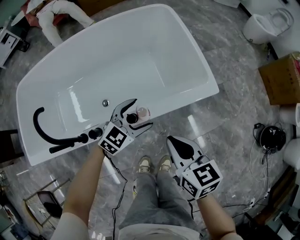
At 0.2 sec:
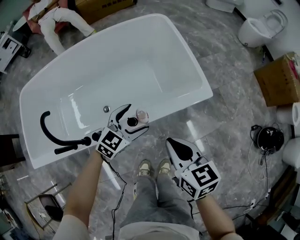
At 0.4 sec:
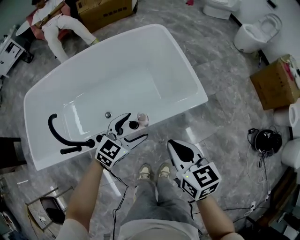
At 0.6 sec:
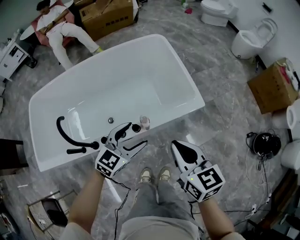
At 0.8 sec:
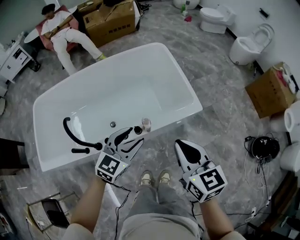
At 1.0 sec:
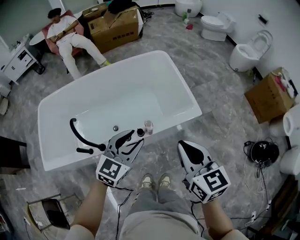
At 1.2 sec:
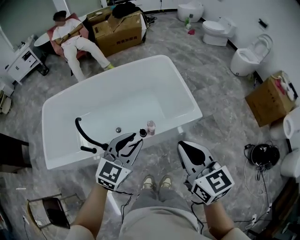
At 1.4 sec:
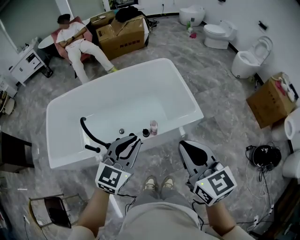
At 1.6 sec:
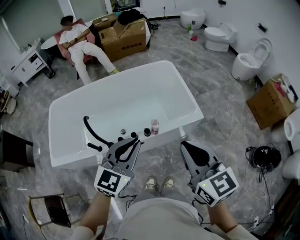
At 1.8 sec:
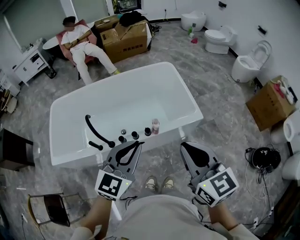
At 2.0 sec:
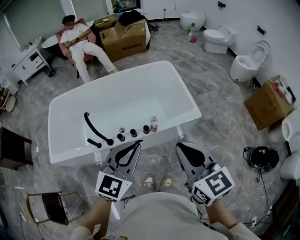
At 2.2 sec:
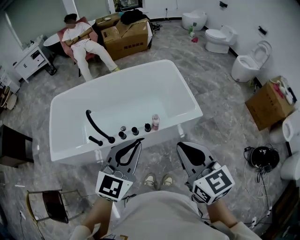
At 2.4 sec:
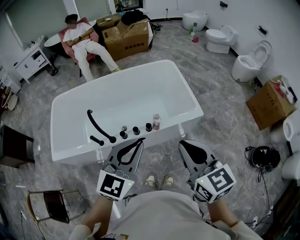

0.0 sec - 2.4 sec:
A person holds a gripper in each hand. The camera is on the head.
0.0 sec - 1.2 sec: The left gripper moves upward and backward, approximately 35 cm, swivels approximately 20 degrees, and closes; the right gripper heads upward, covering roughly 30 cm, and changes its angle by some 20 degrees.
1.2 sec - 2.4 sec: The left gripper travels backward and upward by about 15 cm; the right gripper shifts some 10 cm backward and upward.

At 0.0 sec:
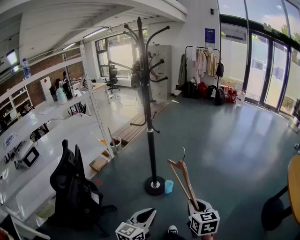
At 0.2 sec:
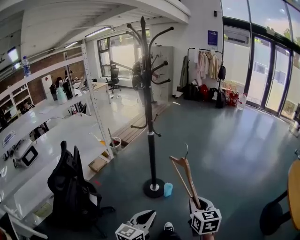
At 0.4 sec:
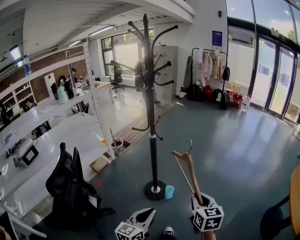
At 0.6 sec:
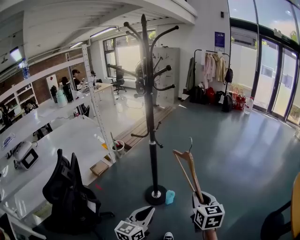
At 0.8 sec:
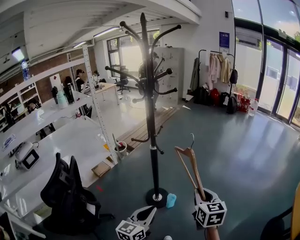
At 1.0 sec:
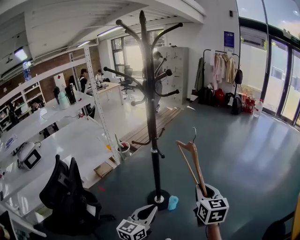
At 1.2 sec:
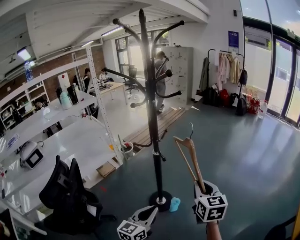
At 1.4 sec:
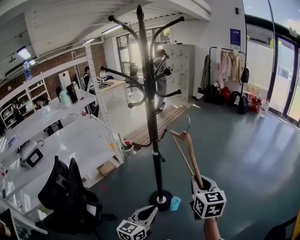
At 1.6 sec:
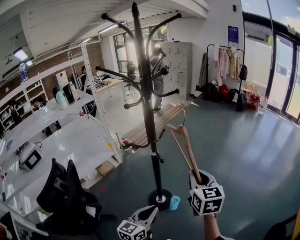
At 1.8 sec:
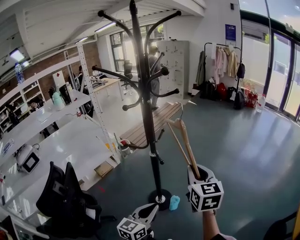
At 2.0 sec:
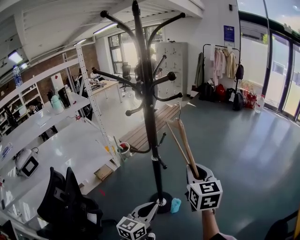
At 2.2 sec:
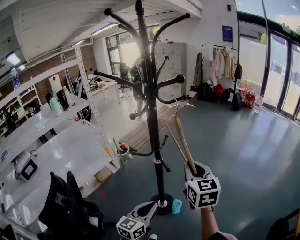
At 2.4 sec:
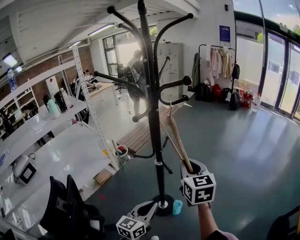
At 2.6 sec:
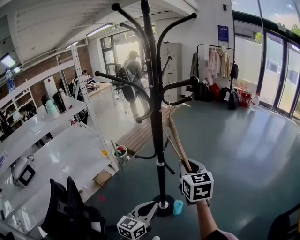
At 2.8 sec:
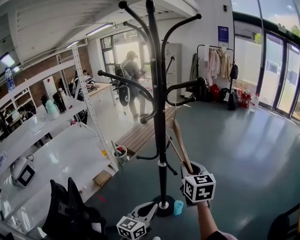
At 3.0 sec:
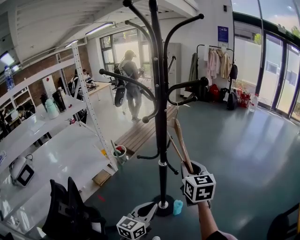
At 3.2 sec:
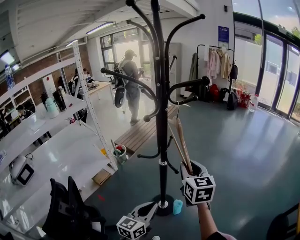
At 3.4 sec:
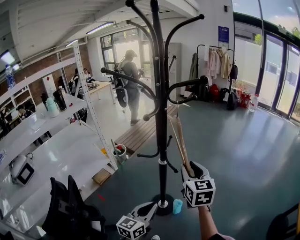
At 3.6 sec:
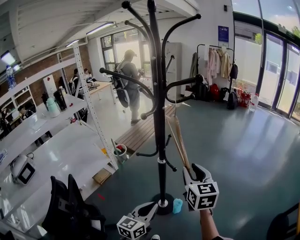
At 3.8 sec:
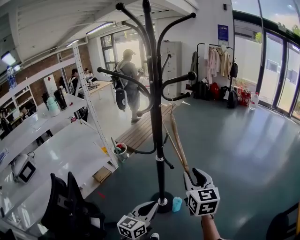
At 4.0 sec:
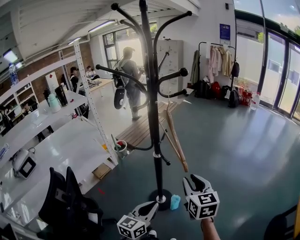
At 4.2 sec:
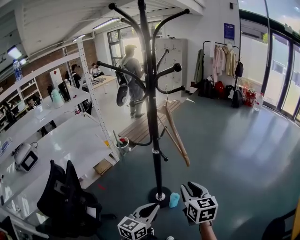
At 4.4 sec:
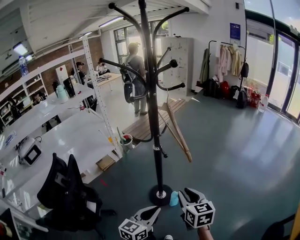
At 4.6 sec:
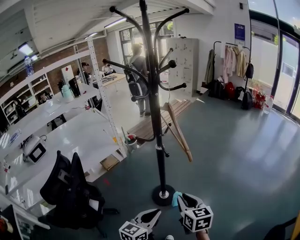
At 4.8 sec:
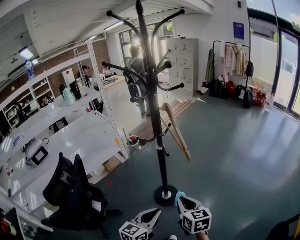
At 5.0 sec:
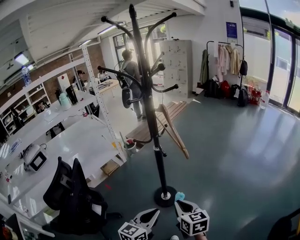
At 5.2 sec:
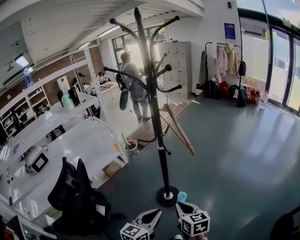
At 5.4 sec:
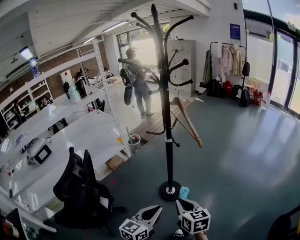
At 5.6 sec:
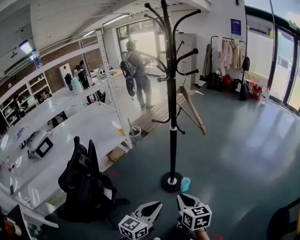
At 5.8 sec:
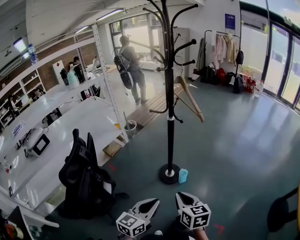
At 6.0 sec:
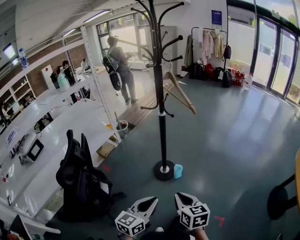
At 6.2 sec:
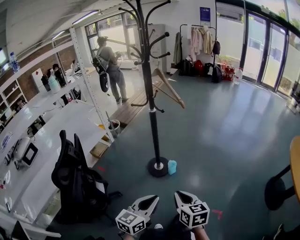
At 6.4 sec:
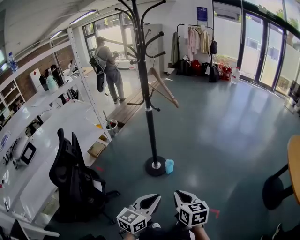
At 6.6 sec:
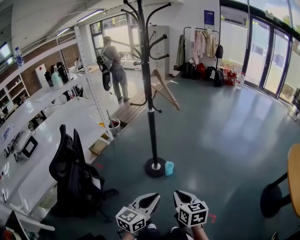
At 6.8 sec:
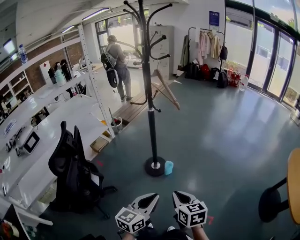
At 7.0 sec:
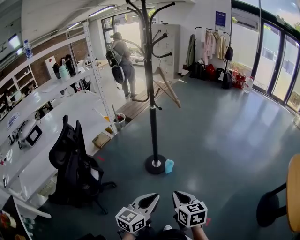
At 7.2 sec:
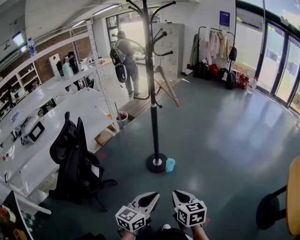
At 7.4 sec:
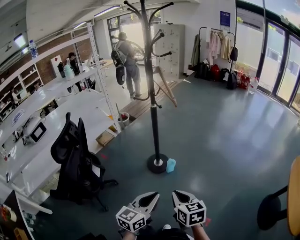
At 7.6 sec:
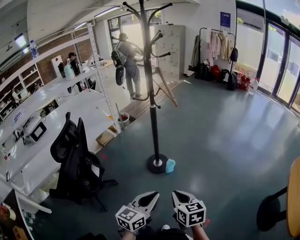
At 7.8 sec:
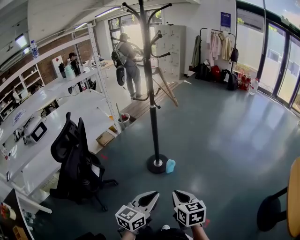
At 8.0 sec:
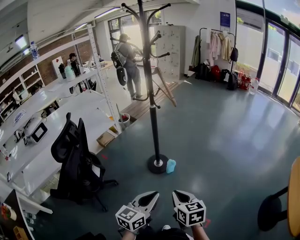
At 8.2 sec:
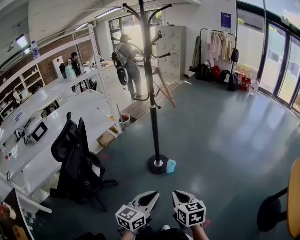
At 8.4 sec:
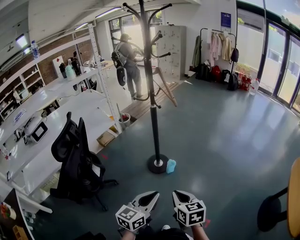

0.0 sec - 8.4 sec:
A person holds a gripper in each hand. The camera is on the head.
0.0 sec - 1.4 sec: The two grippers go approximately 30 cm forward.
1.4 sec - 2.8 sec: The grippers both shift to the left and forward by roughly 15 cm.
2.8 sec - 4.2 sec: The right gripper is displaced backward, downward and to the right by approximately 15 cm. The left gripper travels to the right and backward by some 10 cm.
4.2 sec - 5.6 sec: The left gripper heads backward, covering roughly 15 cm; the right gripper goes about 25 cm backward and to the left, and closes up.
5.6 sec - 7.0 sec: The two grippers go some 15 cm backward and to the right.
7.0 sec - 8.4 sec: The grippers stay close to where they were, moving slightly.

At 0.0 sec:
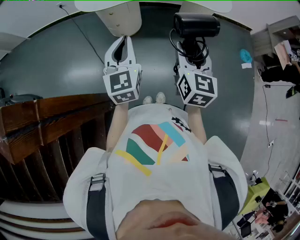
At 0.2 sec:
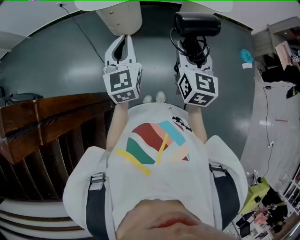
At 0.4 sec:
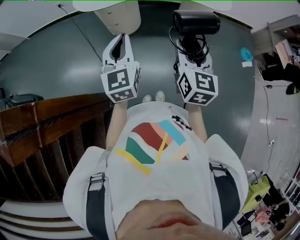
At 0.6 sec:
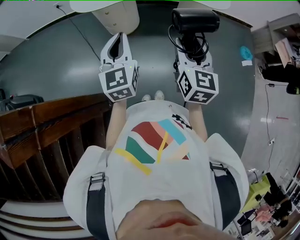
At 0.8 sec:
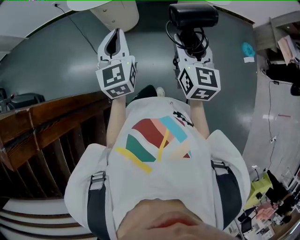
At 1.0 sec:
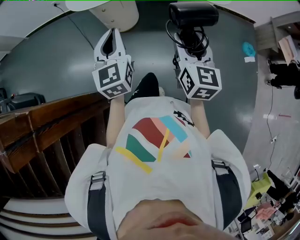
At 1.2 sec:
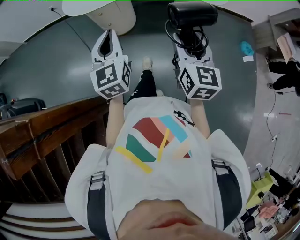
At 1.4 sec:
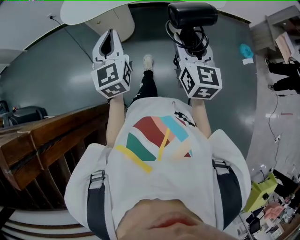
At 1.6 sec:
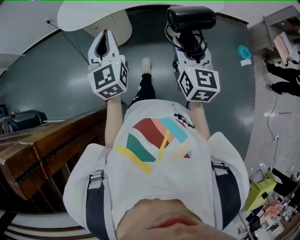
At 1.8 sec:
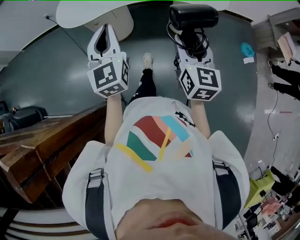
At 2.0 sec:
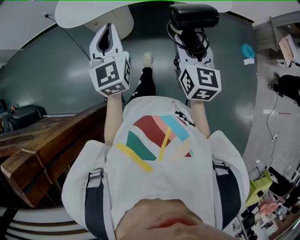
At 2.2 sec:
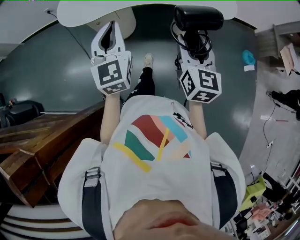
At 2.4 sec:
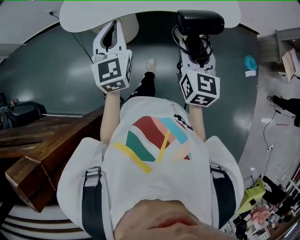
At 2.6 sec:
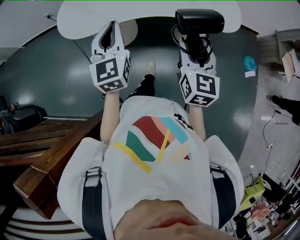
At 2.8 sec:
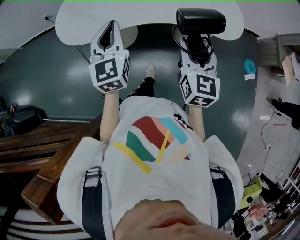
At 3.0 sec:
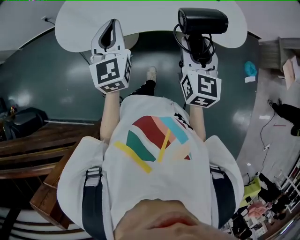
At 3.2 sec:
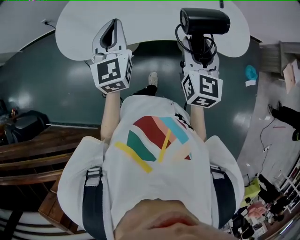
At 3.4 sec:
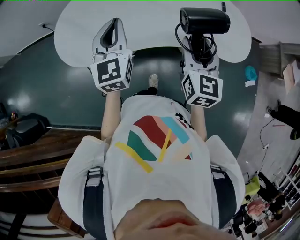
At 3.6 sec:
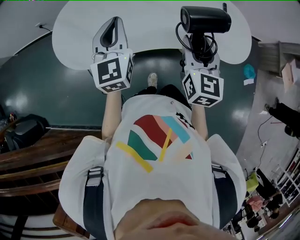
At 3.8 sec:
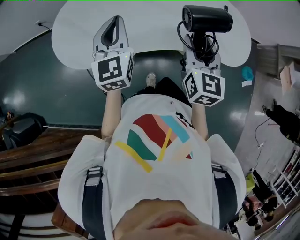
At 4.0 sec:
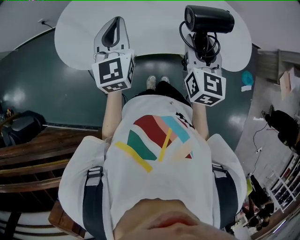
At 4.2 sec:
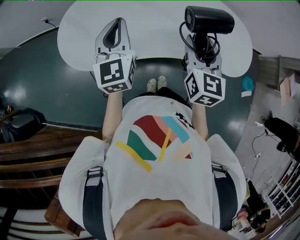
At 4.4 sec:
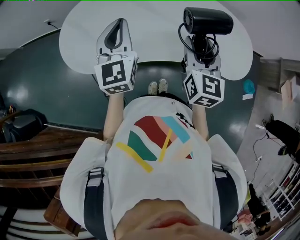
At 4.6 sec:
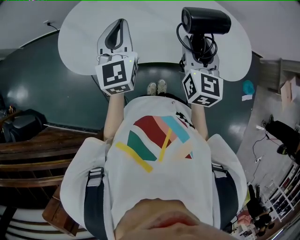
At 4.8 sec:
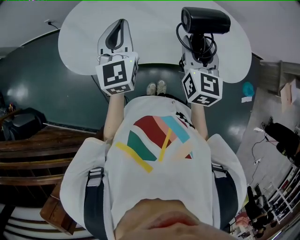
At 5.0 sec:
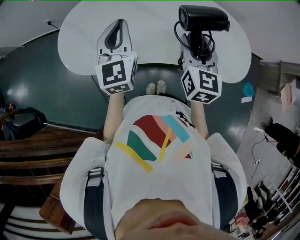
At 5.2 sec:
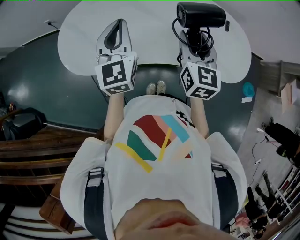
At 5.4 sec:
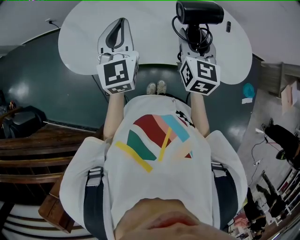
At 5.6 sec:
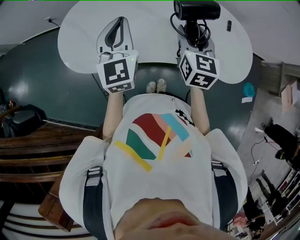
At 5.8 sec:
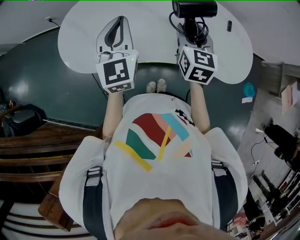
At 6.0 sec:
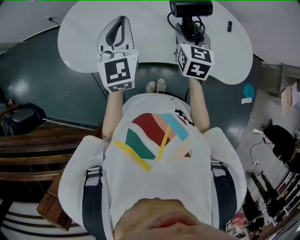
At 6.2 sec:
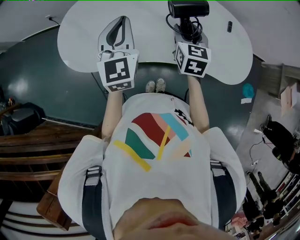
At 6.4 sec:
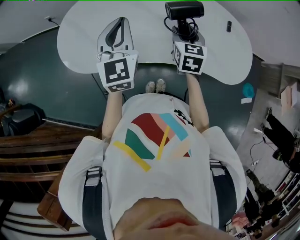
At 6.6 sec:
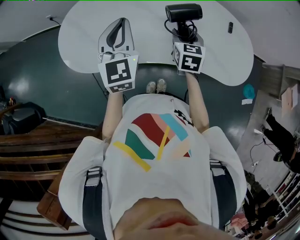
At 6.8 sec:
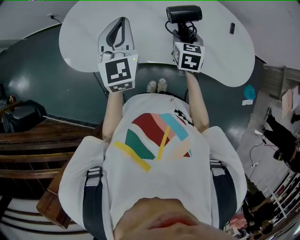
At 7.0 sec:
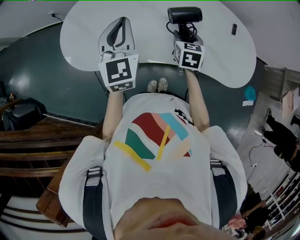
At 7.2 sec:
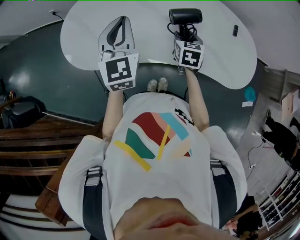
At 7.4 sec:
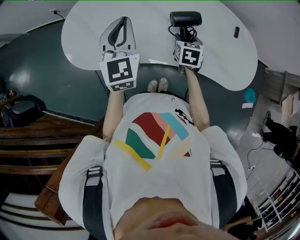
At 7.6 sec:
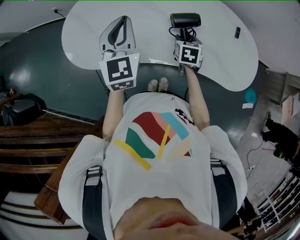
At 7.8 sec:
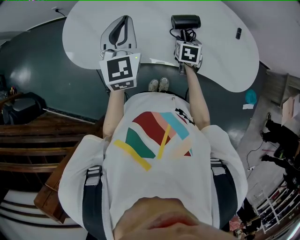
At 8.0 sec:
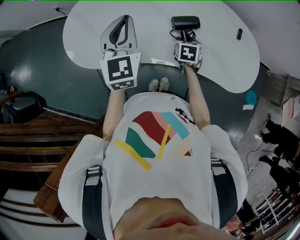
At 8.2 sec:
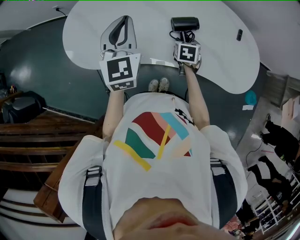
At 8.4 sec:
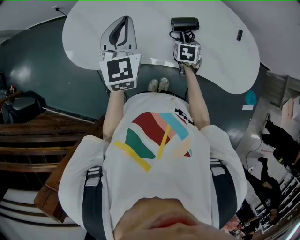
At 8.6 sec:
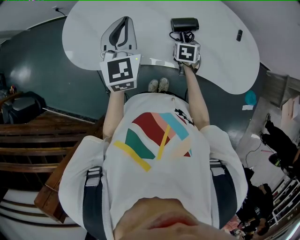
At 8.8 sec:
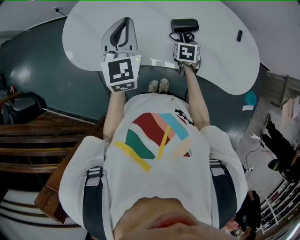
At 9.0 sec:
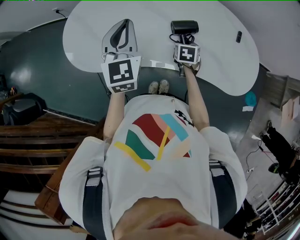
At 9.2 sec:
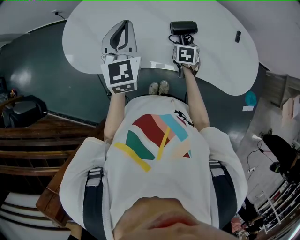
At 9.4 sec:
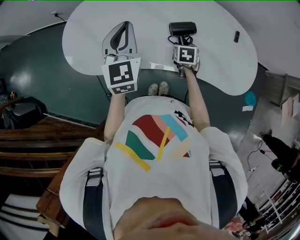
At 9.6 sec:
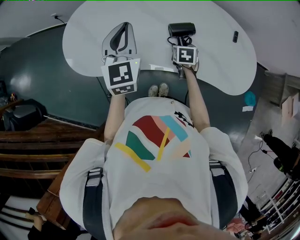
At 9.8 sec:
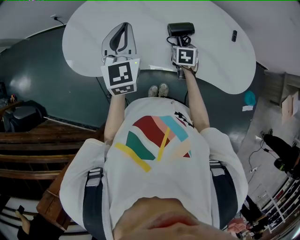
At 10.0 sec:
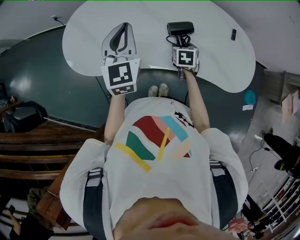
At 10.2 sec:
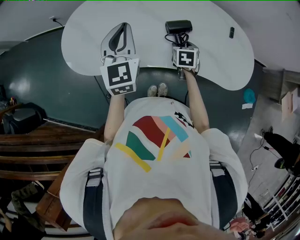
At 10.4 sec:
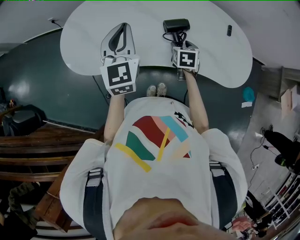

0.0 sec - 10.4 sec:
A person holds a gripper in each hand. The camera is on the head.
0.0 sec - 1.4 sec: The left gripper is displaced forward by approximately 10 cm. The right gripper goes about 10 cm forward and to the right.
1.4 sec - 3.0 sec: Both grippers travel together forward, approximately 30 cm.
3.0 sec - 4.4 sec: The grippers both shift forward by some 15 cm.
4.4 sec - 6.0 sec: The right gripper is displaced forward and downward by some 10 cm.
6.0 sec - 7.4 sec: The right gripper heads downward, covering about 15 cm, and changes its angle by some 20 degrees.
7.4 sec - 9.0 sec: The right gripper shifts some 5 cm downward.
9.0 sec - 10.4 sec: The right gripper moves some 5 cm.

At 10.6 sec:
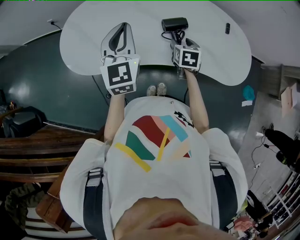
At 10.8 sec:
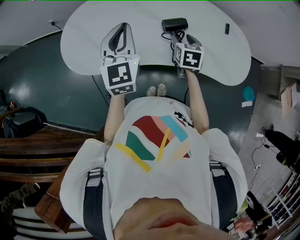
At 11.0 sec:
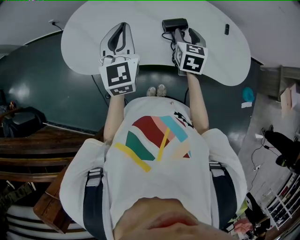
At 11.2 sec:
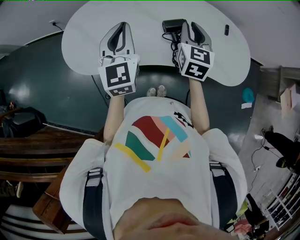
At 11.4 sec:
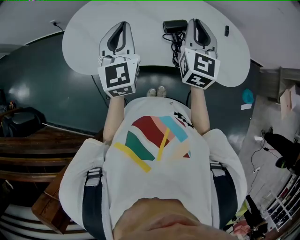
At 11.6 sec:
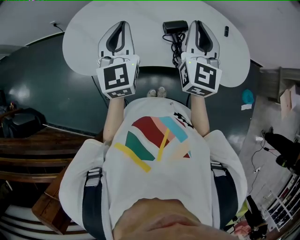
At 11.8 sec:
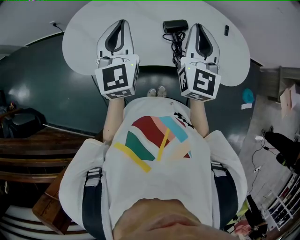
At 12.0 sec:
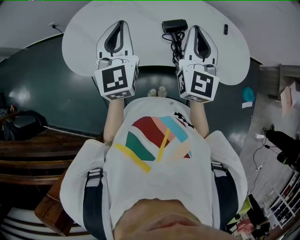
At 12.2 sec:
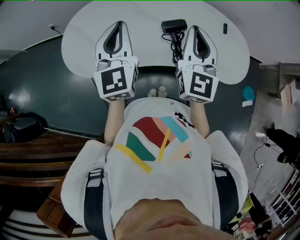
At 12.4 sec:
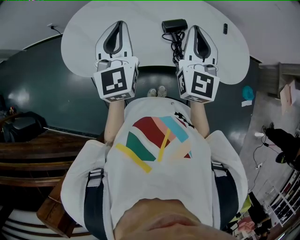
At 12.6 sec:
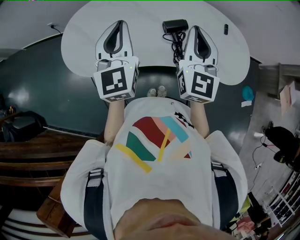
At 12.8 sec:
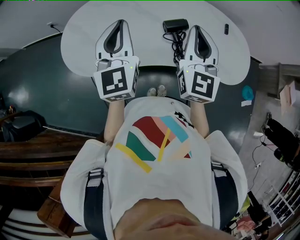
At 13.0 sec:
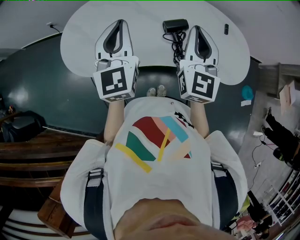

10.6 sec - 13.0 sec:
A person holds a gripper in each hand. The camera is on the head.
10.6 sec - 11.8 sec: The right gripper moves upward, roughly 25 cm, tips its fingers upward by roughly 50 degrees, and closes. Meanwhile the left gripper shifts by roughly 5 cm.
11.8 sec - 13.0 sec: The two grippers keep their place.
